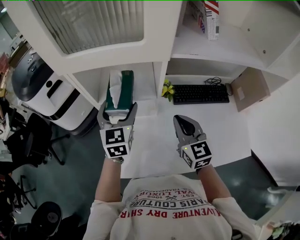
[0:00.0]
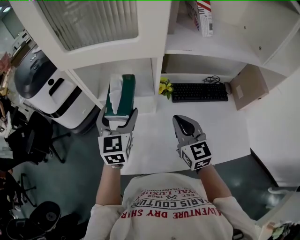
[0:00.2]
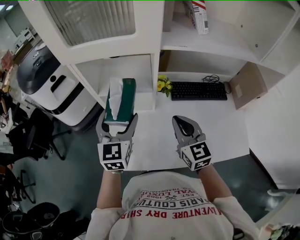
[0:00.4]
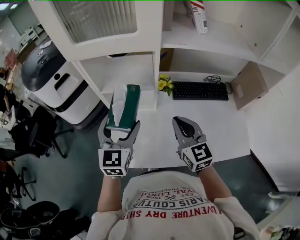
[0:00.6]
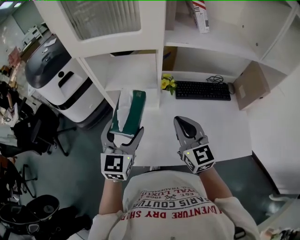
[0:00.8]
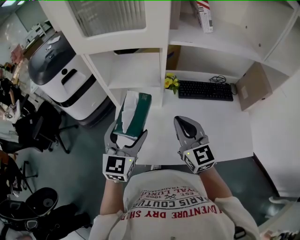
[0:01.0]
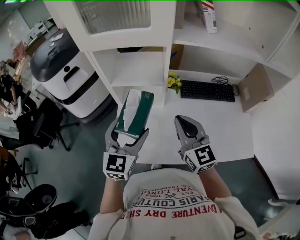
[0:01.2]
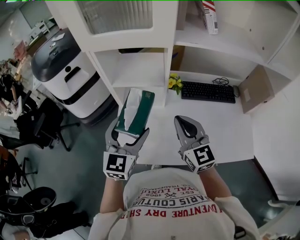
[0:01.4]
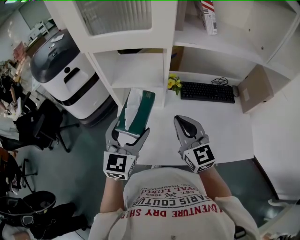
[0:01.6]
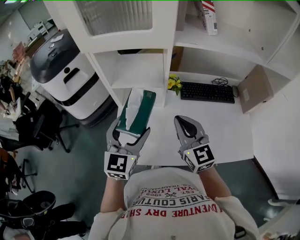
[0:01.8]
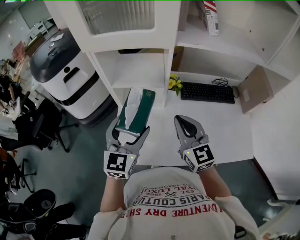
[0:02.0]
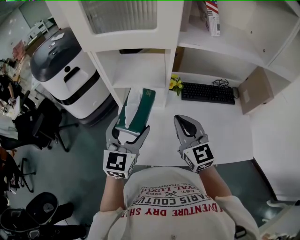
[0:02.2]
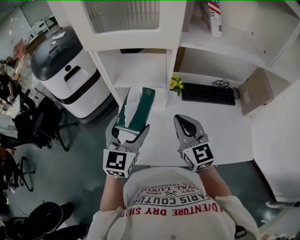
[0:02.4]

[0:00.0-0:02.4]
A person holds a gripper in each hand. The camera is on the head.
0:00.0 to 0:01.2: The right gripper is displaced backward by approximately 10 cm. The left gripper goes approximately 20 cm backward.
0:01.2 to 0:02.4: The grippers stay close to where they were, moving slightly.

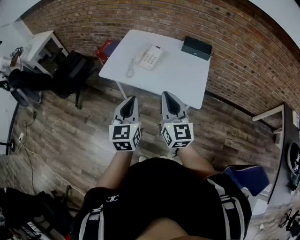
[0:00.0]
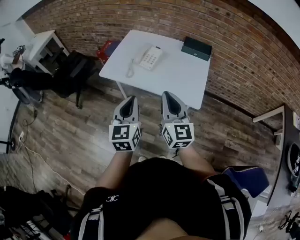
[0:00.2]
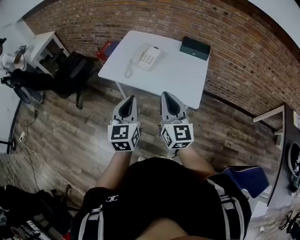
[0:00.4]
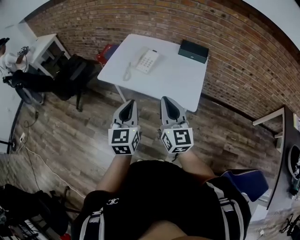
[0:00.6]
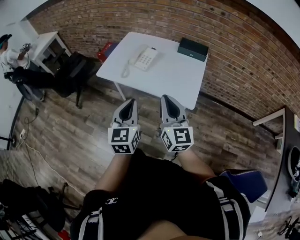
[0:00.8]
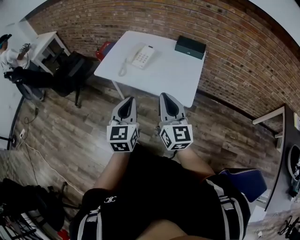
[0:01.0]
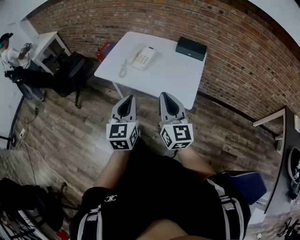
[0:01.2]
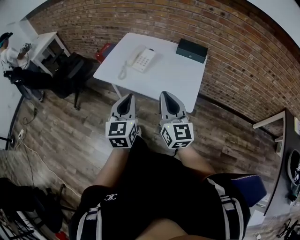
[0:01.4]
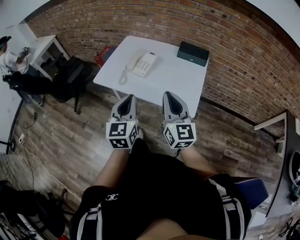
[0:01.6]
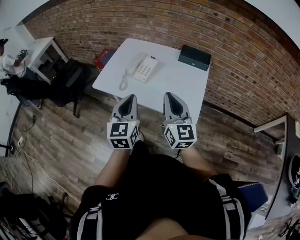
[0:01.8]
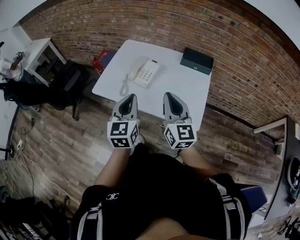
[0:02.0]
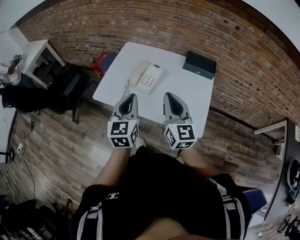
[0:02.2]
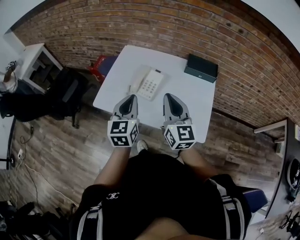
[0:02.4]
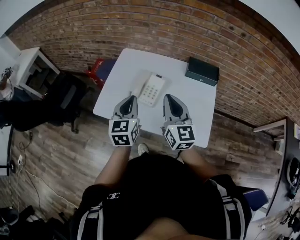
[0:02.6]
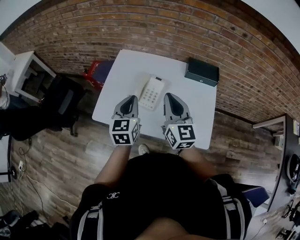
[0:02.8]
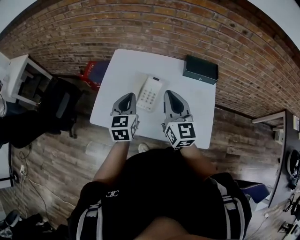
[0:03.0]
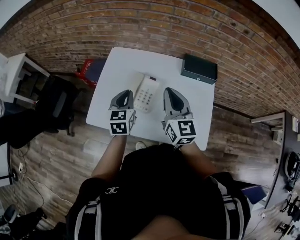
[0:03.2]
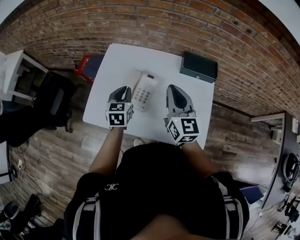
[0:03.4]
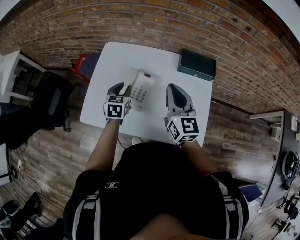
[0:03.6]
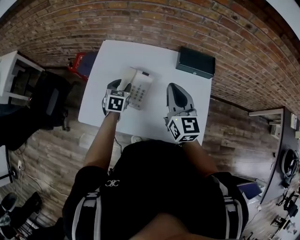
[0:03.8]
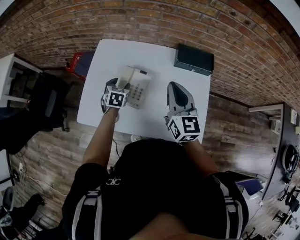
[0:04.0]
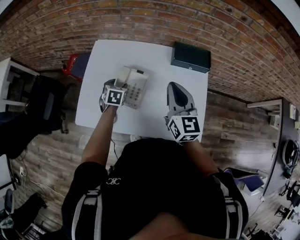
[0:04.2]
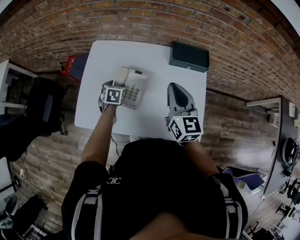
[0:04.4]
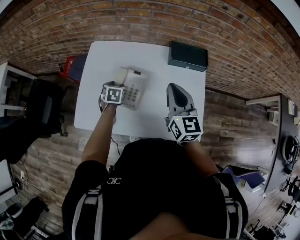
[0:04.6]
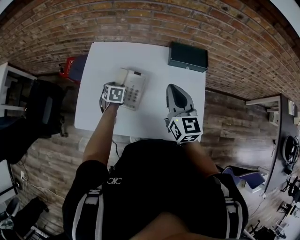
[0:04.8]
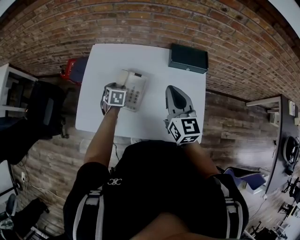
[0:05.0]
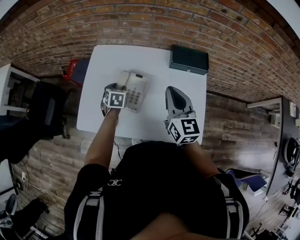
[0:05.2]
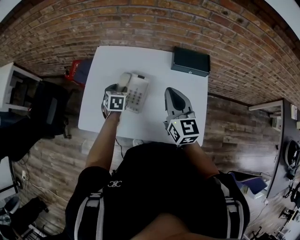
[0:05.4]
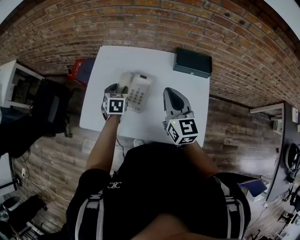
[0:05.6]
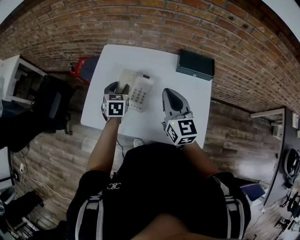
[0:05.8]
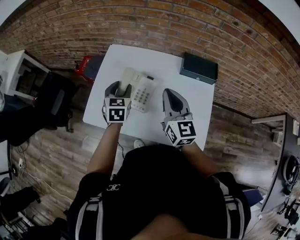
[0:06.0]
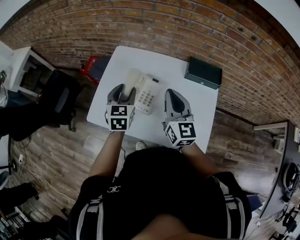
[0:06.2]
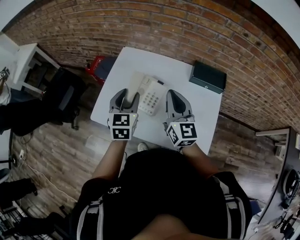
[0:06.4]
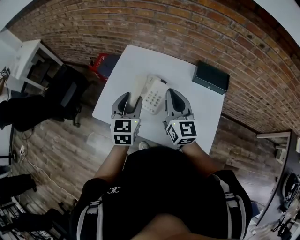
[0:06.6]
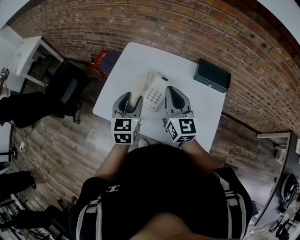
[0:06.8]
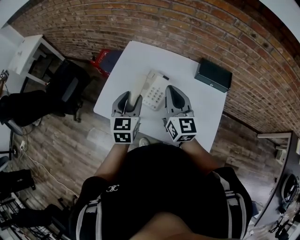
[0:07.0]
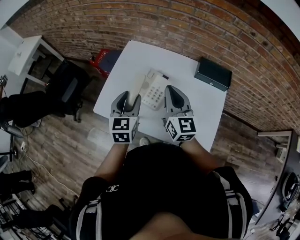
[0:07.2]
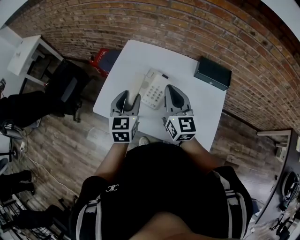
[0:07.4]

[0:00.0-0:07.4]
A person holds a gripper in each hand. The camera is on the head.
0:00.0 to 0:01.4: Both grippers travel together to the right, roughly 5 cm.
0:01.4 to 0:03.0: The two grippers go about 35 cm forward.
0:03.0 to 0:04.4: The right gripper heads to the right and forward, covering approximately 10 cm; the left gripper travels downward and forward by approximately 25 cm, tilts its fingers about 30 degrees downward, and opens.
0:04.4 to 0:06.0: The left gripper moves upward, some 15 cm, and swivels some 20 degrees; the right gripper shifts approximately 5 cm to the left.
0:06.0 to 0:07.4: The right gripper moves to the left, roughly 5 cm, while the left gripper is displaced backward by roughly 10 cm.

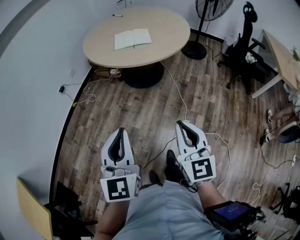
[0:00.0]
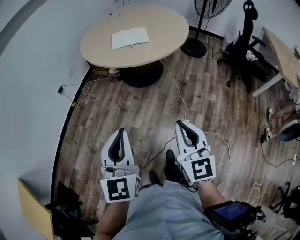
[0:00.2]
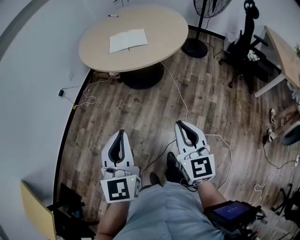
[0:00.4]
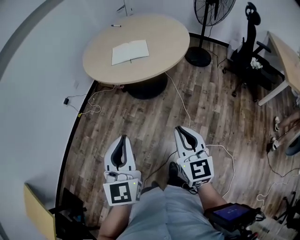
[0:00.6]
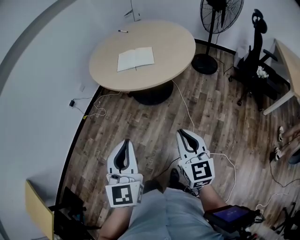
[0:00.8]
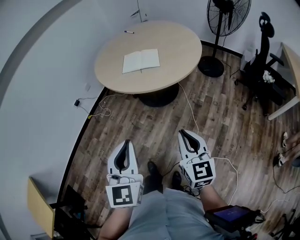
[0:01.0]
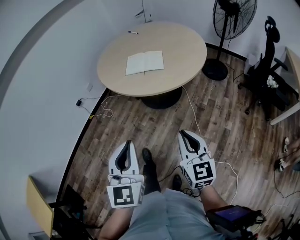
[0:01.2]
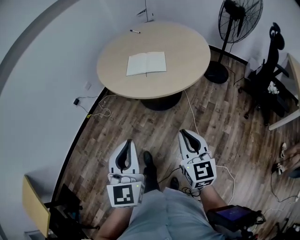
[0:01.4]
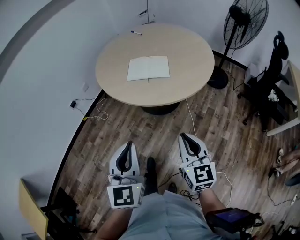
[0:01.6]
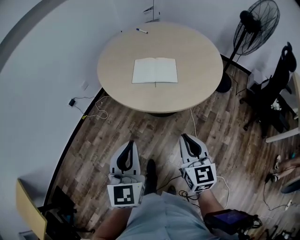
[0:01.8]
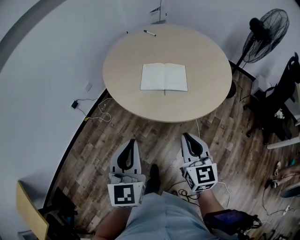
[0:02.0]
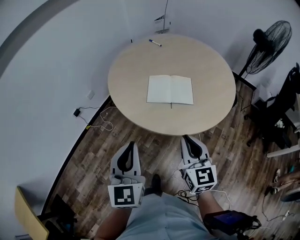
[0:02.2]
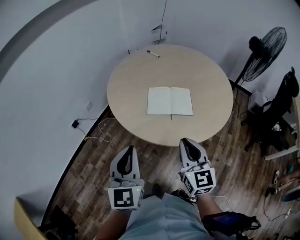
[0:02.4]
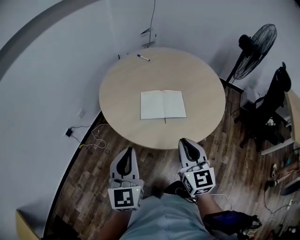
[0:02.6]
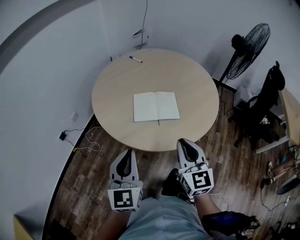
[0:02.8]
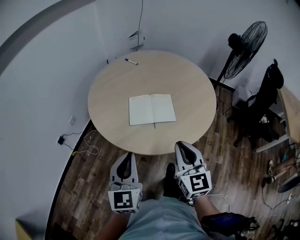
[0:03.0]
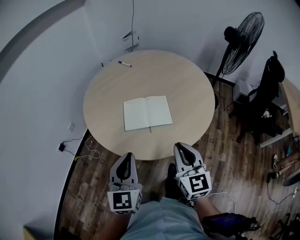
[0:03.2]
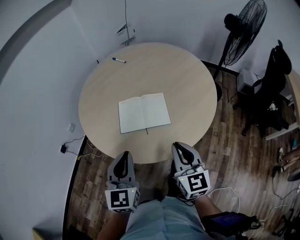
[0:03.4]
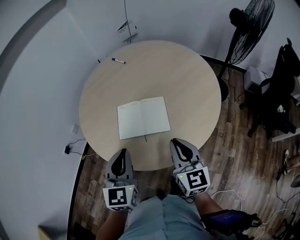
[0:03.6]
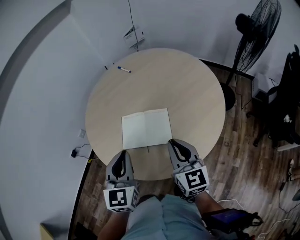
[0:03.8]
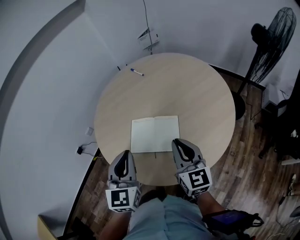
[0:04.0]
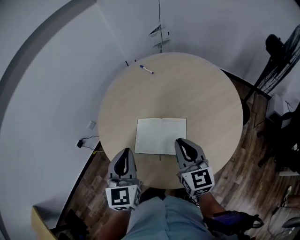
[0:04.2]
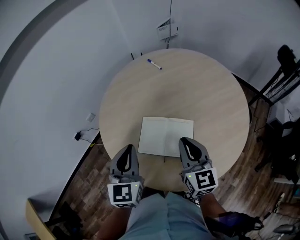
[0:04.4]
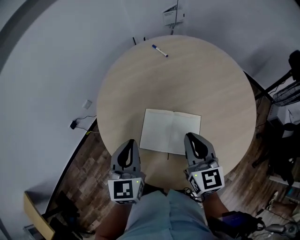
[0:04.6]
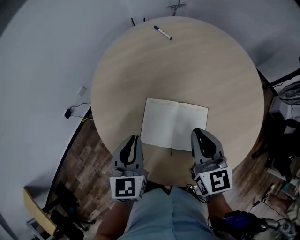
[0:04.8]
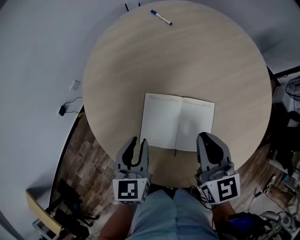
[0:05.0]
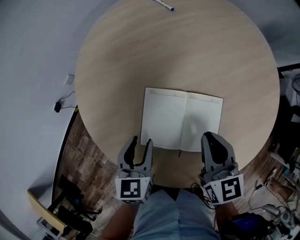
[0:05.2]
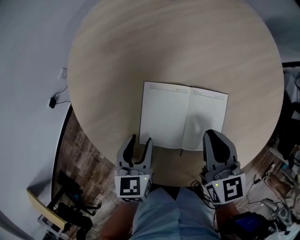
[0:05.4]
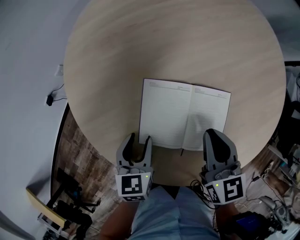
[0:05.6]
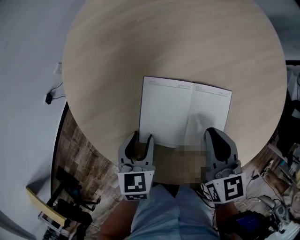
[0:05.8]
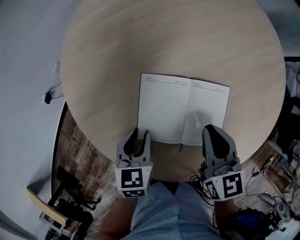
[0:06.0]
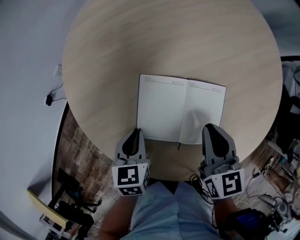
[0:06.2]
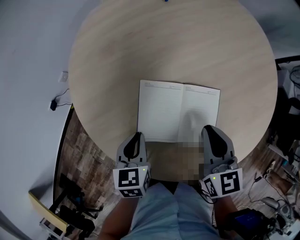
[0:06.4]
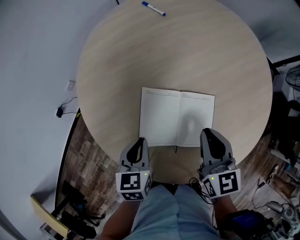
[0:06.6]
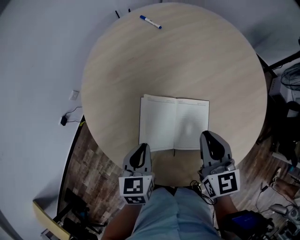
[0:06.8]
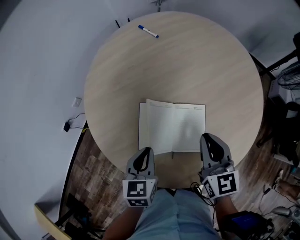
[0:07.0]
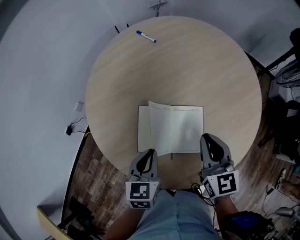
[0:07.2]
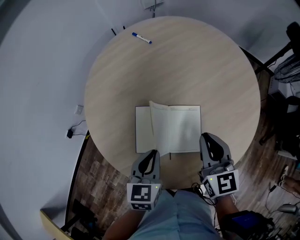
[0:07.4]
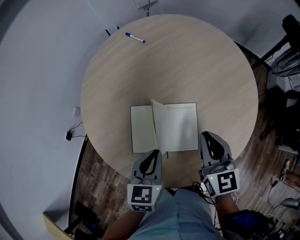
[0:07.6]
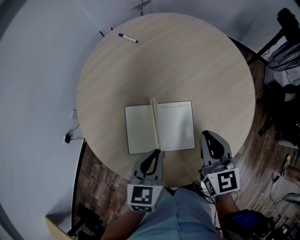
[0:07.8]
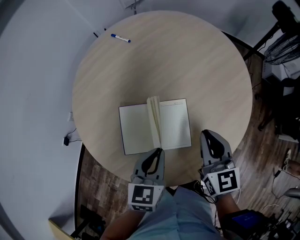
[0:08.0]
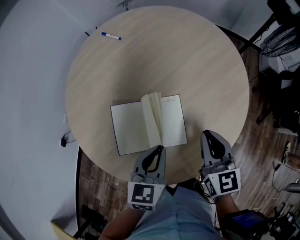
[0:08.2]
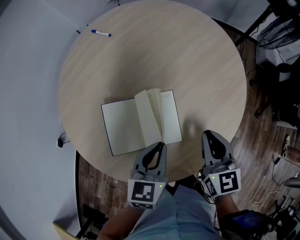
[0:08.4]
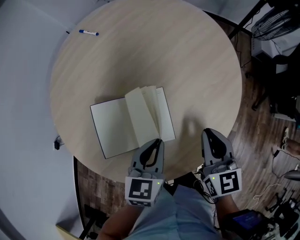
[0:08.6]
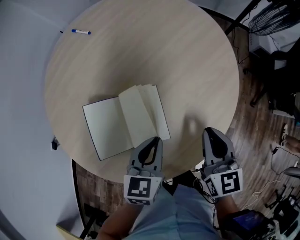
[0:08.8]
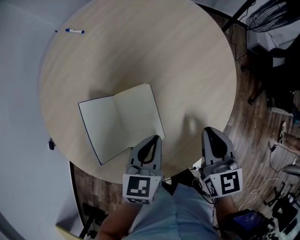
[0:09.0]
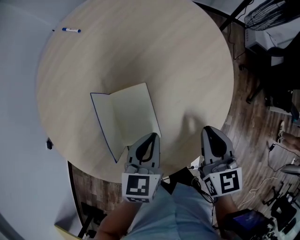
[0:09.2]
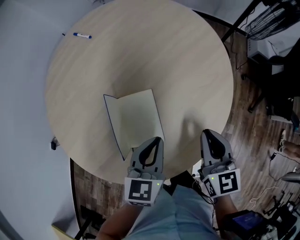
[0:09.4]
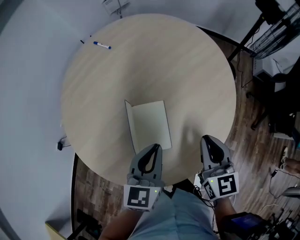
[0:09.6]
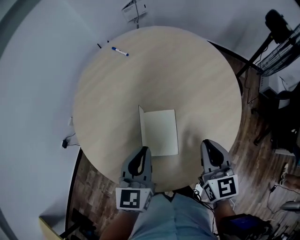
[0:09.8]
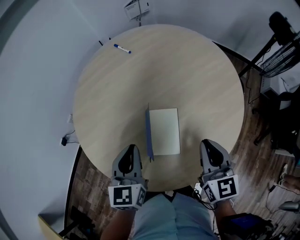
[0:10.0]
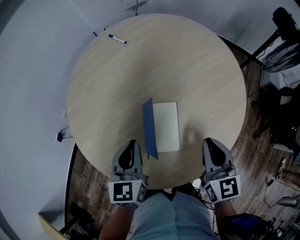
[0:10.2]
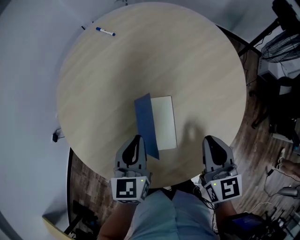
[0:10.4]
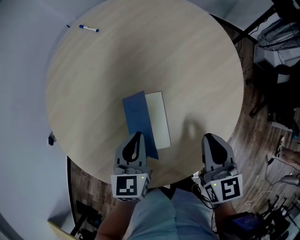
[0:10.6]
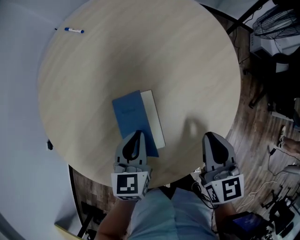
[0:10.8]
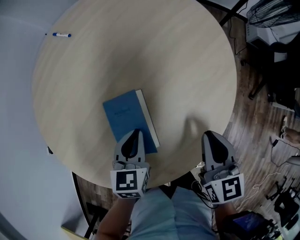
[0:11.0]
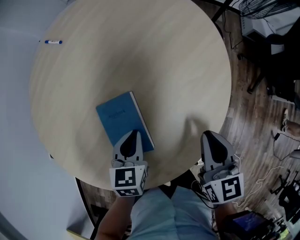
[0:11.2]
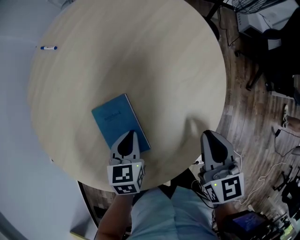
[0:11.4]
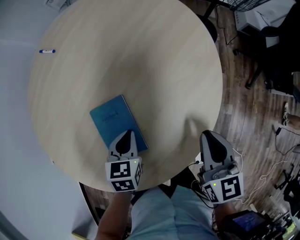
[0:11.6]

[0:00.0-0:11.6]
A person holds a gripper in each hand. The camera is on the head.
0:00.0 to 0:01.4: The grippers both shift forward and to the right by some 20 cm.
0:01.4 to 0:02.8: The grippers both shift forward and to the left by about 35 cm.
0:02.8 to 0:04.4: Both grippers travel together forward, roughly 30 cm.
0:04.4 to 0:05.8: The right gripper travels downward and forward by some 25 cm, and swivels about 20 degrees. Meanwhile the left gripper shifts some 35 cm downward, points its fingers approximately 30 degrees further downward, and opens up.
0:05.8 to 0:07.2: Both grippers travel together upward and to the right, some 15 cm. The left gripper closes its fingers.
0:07.2 to 0:08.8: Both grippers travel together to the right, about 20 cm. The left gripper changes its angle by approximately 20 degrees.
0:08.8 to 0:10.2: The right gripper shifts roughly 5 cm upward. The left gripper is displaced to the left and upward by approximately 15 cm, and changes its angle by approximately 30 degrees.
0:10.2 to 0:11.6: The right gripper is displaced to the right and downward by some 15 cm, and changes its angle by about 20 degrees, while the left gripper goes some 25 cm downward and to the right, and rotates some 40 degrees.

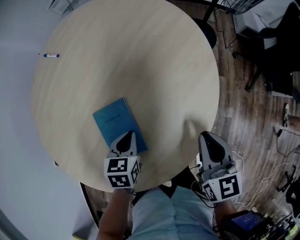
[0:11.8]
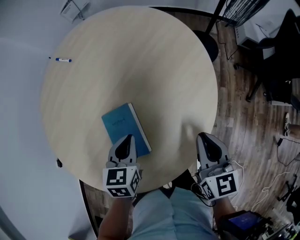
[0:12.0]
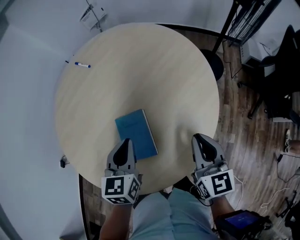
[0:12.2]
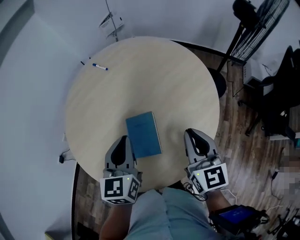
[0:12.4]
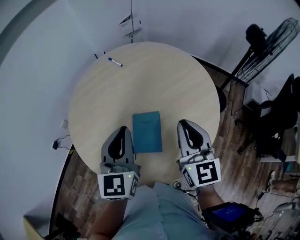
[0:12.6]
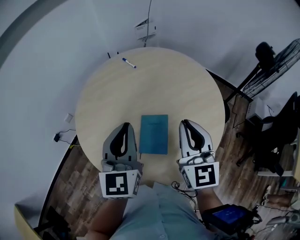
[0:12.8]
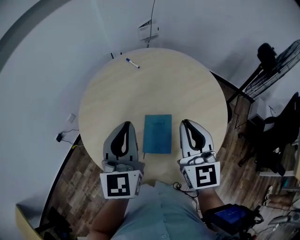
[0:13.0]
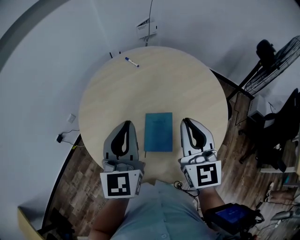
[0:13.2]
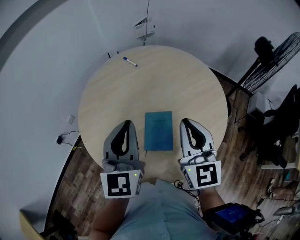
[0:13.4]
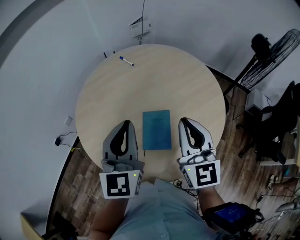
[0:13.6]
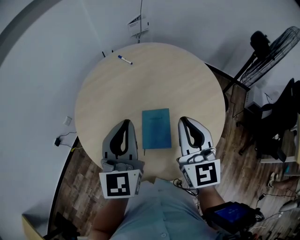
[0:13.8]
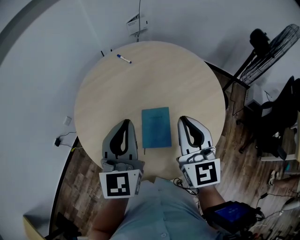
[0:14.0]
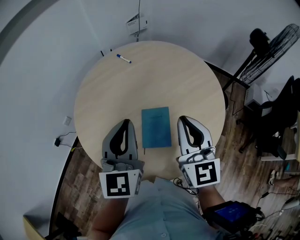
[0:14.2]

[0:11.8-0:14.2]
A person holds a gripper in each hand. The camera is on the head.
0:11.8 to 0:13.0: Both grippers travel together upward, about 35 cm. The left gripper points its fingers approximately 60 degrees further upward, while the right gripper swivels roughly 40 degrees.
0:13.0 to 0:14.2: There are only small adjustments of the grippers.
